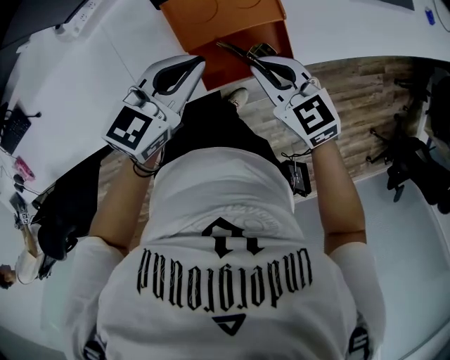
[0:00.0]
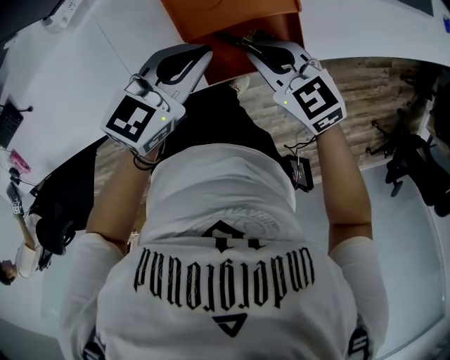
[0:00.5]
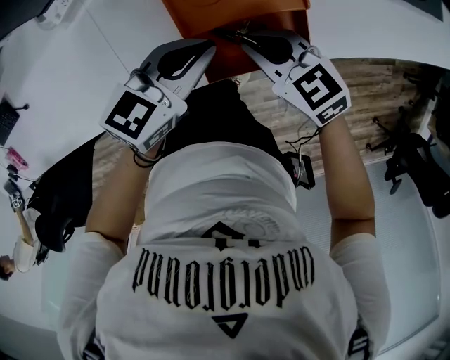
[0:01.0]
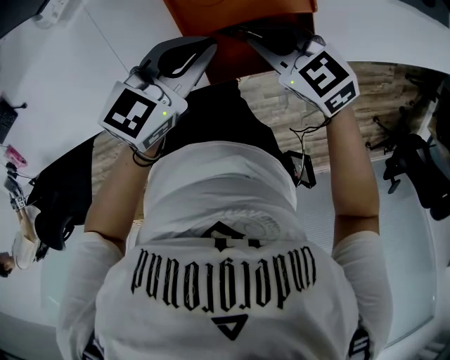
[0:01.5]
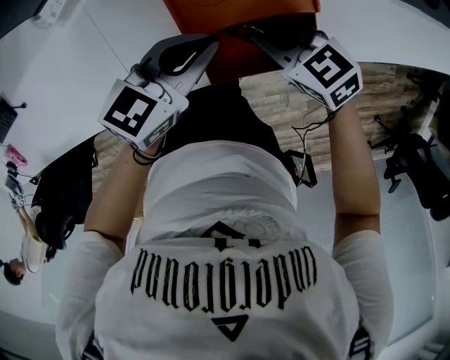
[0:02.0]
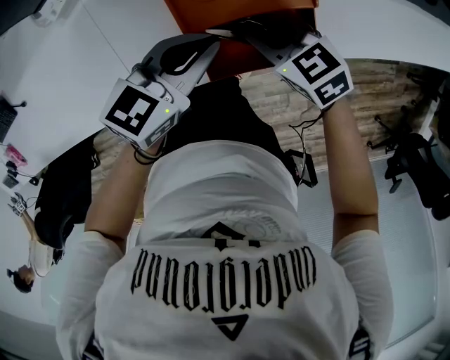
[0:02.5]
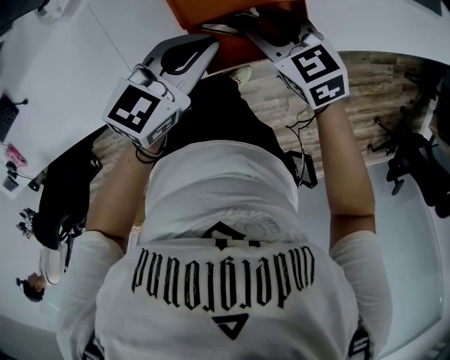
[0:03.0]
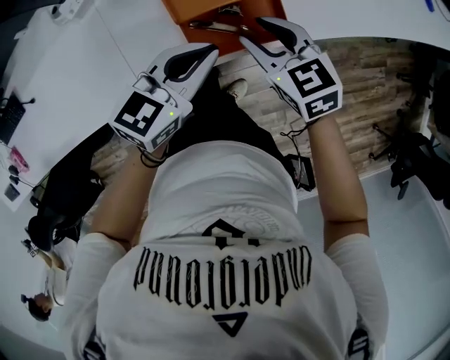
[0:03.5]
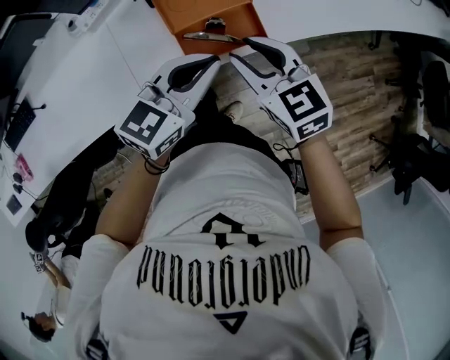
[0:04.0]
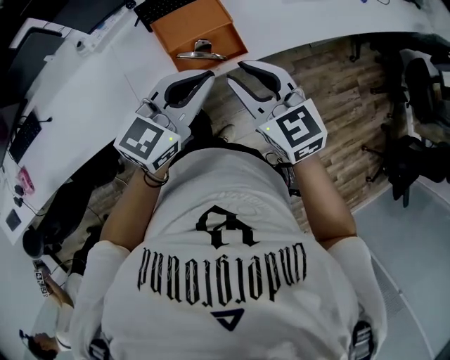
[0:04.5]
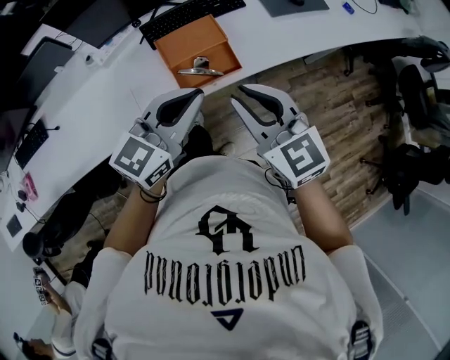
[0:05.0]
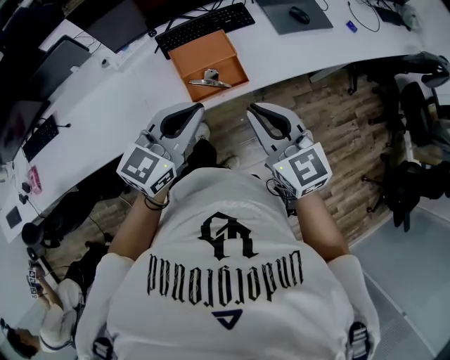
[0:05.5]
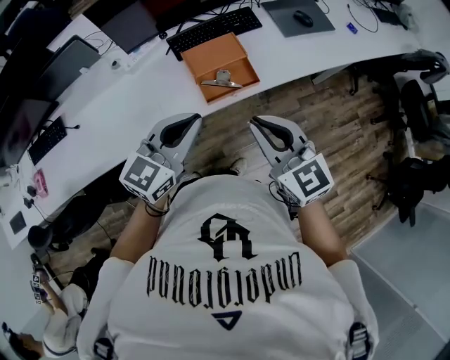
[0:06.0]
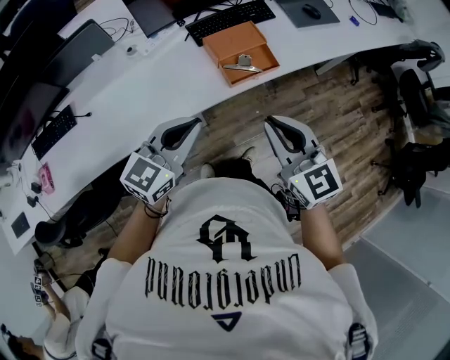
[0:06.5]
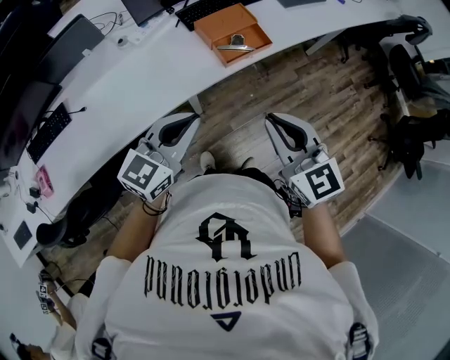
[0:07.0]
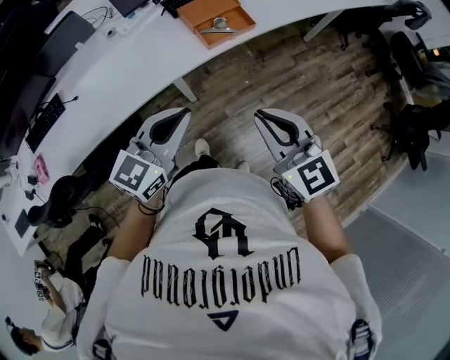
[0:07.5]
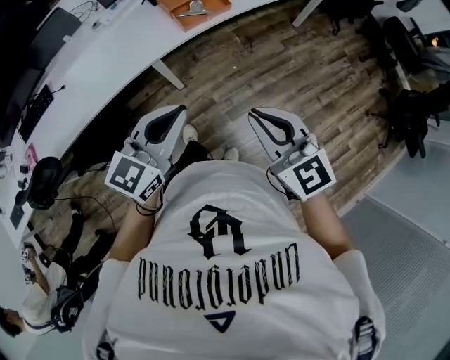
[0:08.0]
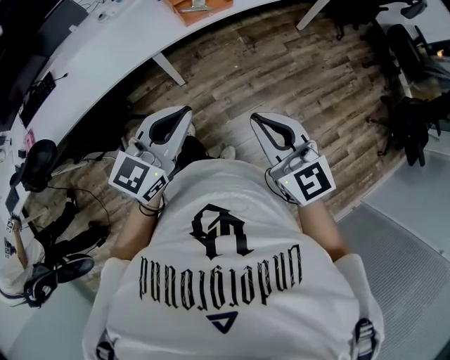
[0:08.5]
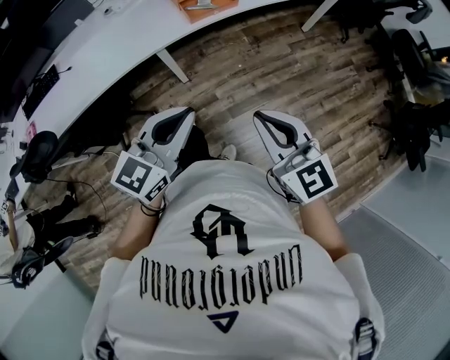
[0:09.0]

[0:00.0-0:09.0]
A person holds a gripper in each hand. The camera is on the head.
0:00.0 to 0:02.0: Both grippers move downward, approximately 10 cm.
0:02.0 to 0:04.5: Both grippers travel together upward, roughly 25 cm. The right gripper rotates about 40 degrees, and opens, while the left gripper rotates about 30 degrees.
0:04.5 to 0:07.0: The two grippers go roughly 30 cm backward and to the left. The right gripper closes up.
0:07.0 to 0:09.0: The two grippers go roughly 25 cm backward and to the right.

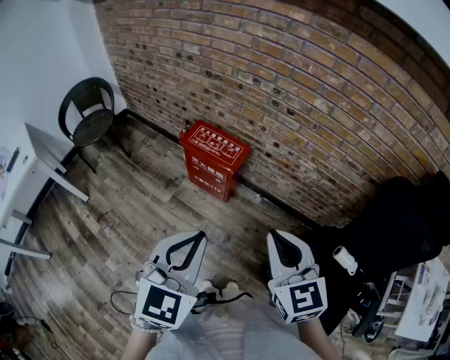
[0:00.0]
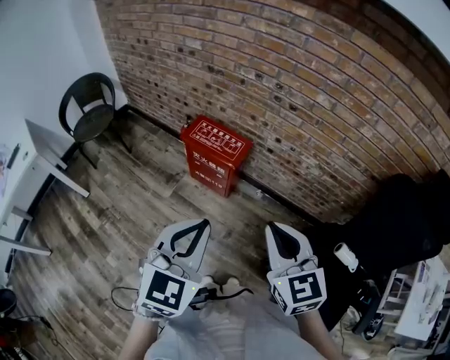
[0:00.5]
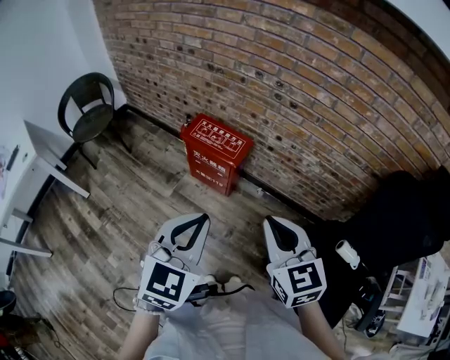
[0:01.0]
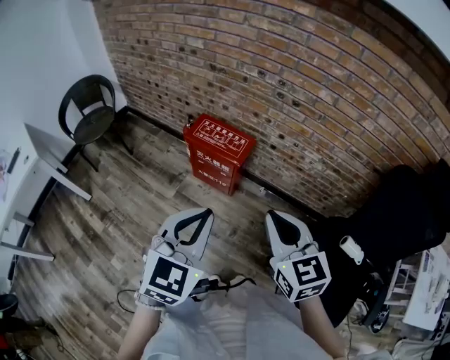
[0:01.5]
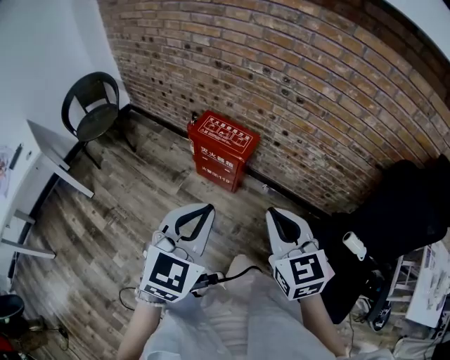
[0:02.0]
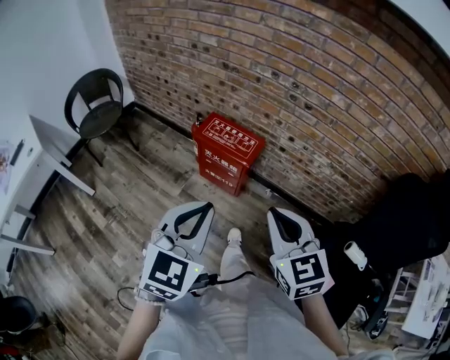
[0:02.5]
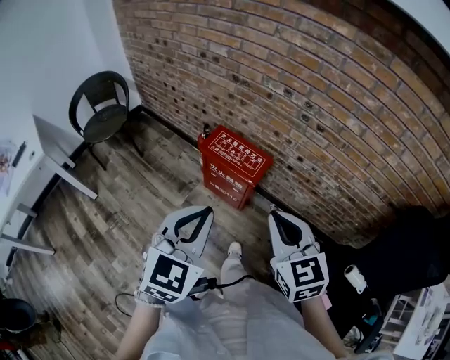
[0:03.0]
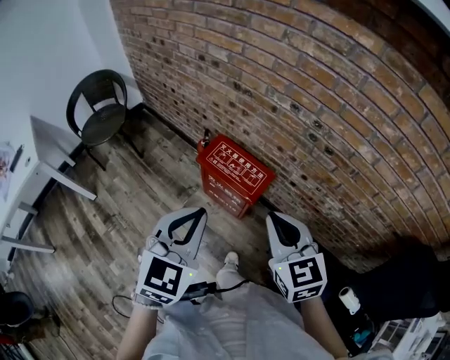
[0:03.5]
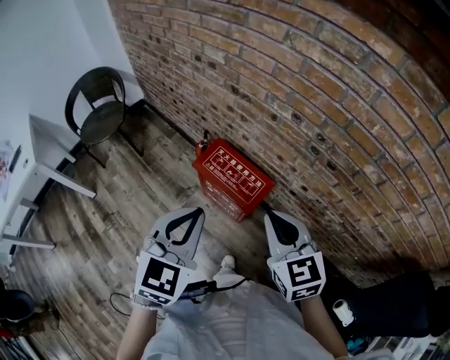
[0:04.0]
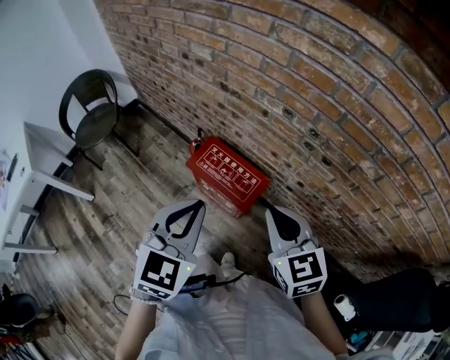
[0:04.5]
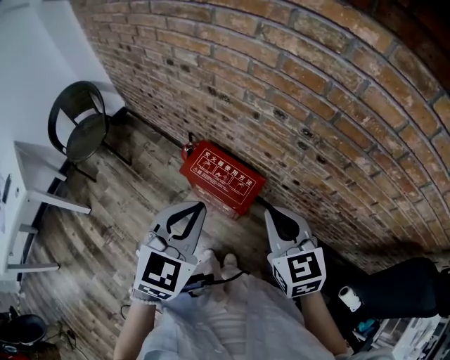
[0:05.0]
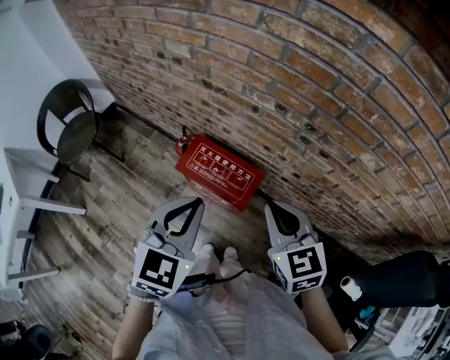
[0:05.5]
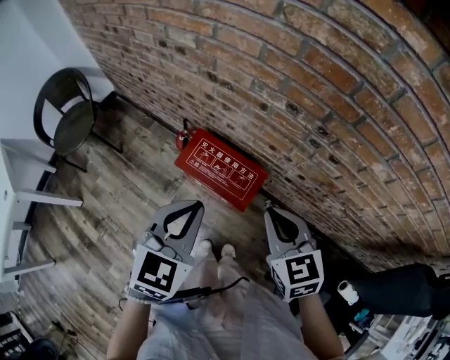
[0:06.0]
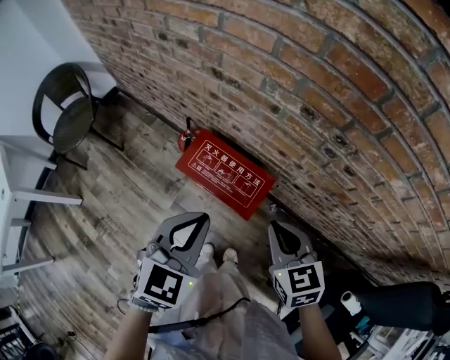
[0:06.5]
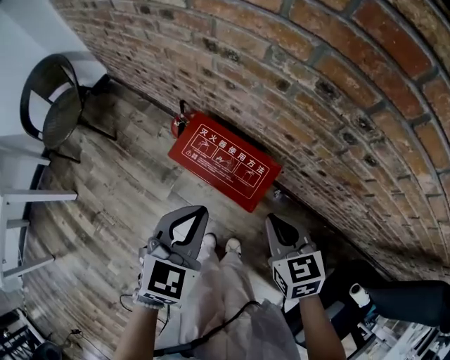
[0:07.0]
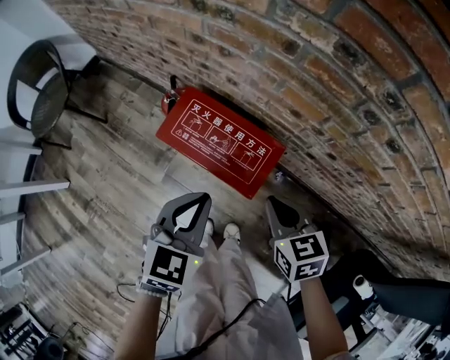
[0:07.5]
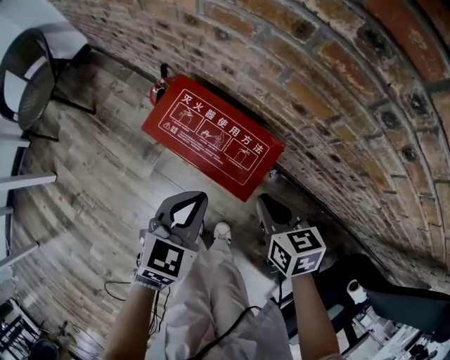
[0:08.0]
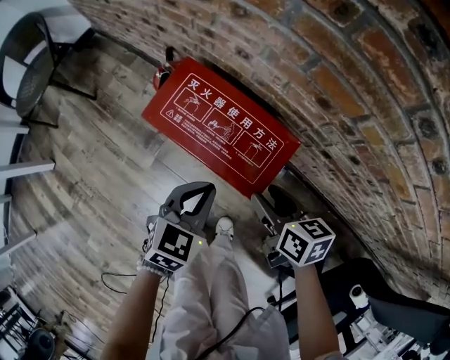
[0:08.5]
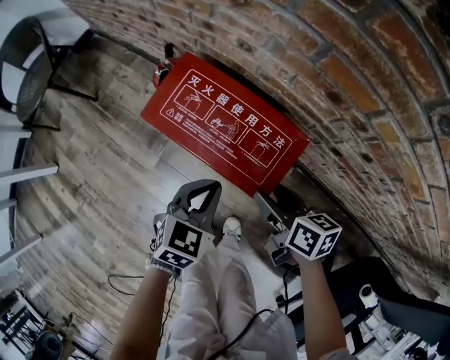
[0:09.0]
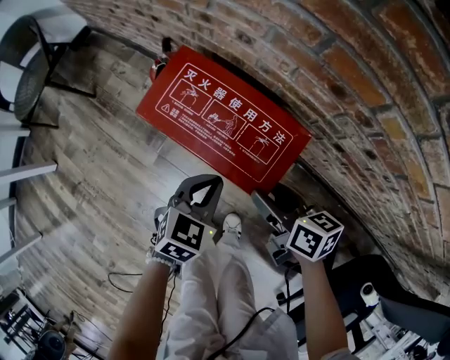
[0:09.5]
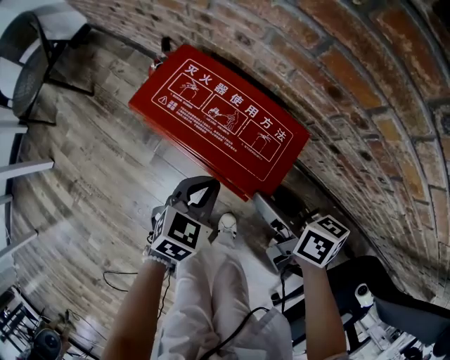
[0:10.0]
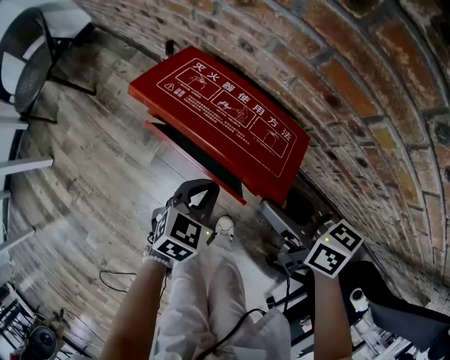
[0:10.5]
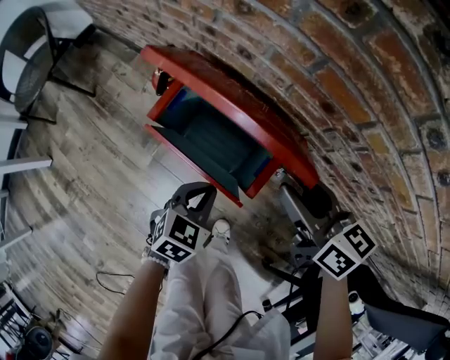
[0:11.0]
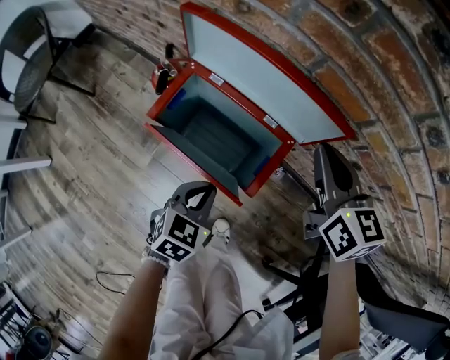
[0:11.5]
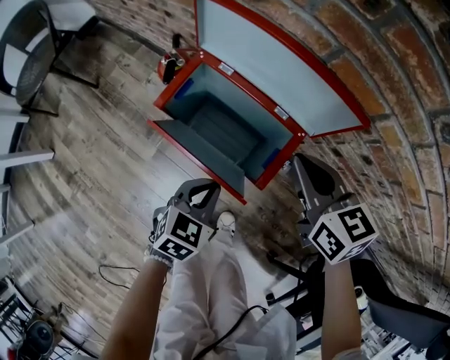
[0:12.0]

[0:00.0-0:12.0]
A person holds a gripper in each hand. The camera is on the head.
0:00.0 to 0:02.0: The left gripper changes place by approximately 5 cm; the right gripper goes about 5 cm to the left.
0:02.0 to 0:04.0: The grippers both shift forward by some 30 cm.
0:04.0 to 0:06.0: The two grippers go about 10 cm forward and downward.
0:06.0 to 0:08.0: Both grippers move downward, approximately 30 cm. The right gripper swivels some 30 degrees.
0:08.0 to 0:10.0: The left gripper shifts roughly 15 cm downward; the right gripper changes its angle by some 30 degrees, and opens.
0:10.0 to 0:12.0: The right gripper heads forward and upward, covering roughly 10 cm, turns by roughly 40 degrees, and closes.

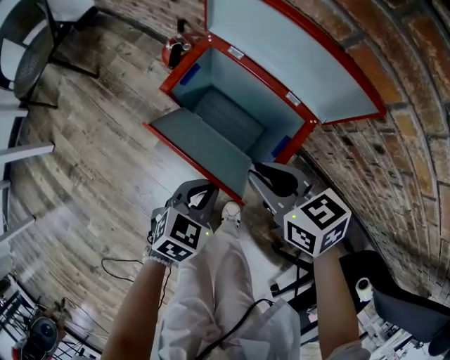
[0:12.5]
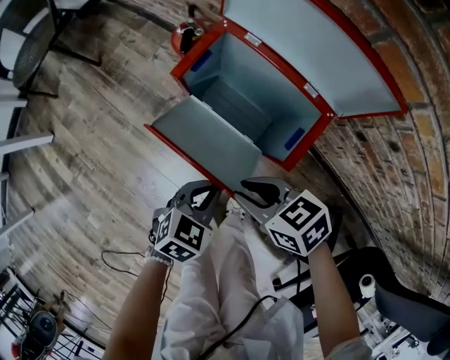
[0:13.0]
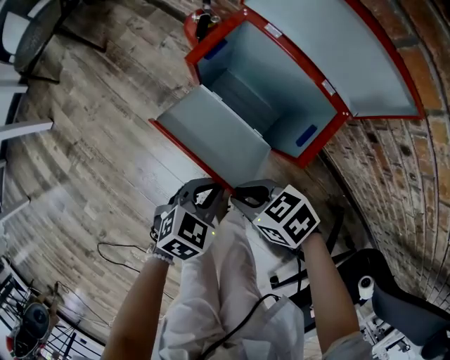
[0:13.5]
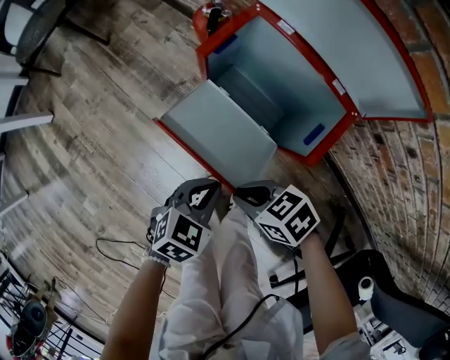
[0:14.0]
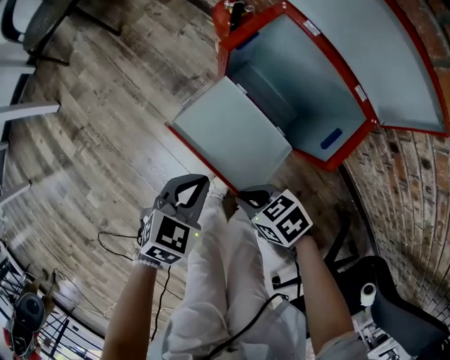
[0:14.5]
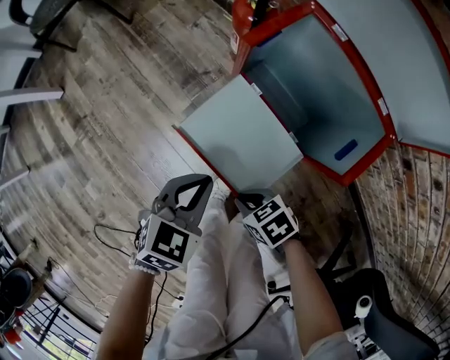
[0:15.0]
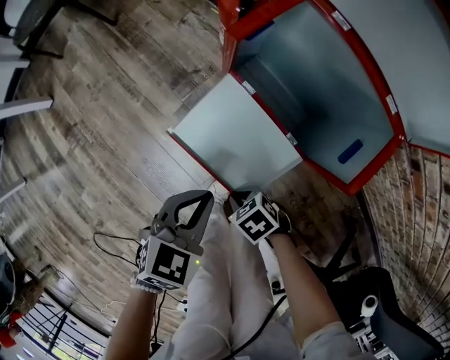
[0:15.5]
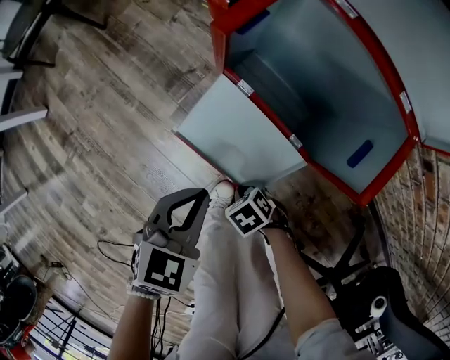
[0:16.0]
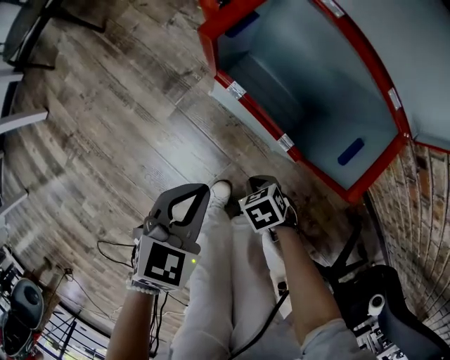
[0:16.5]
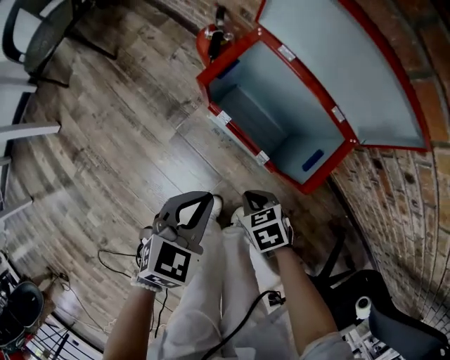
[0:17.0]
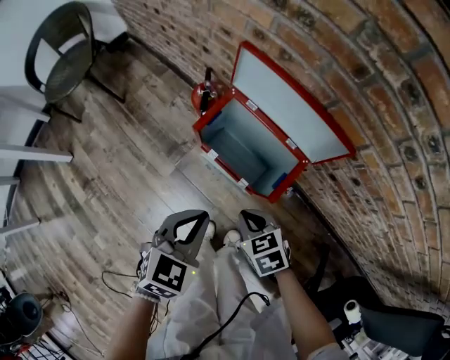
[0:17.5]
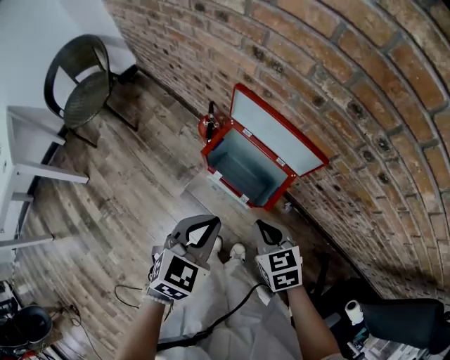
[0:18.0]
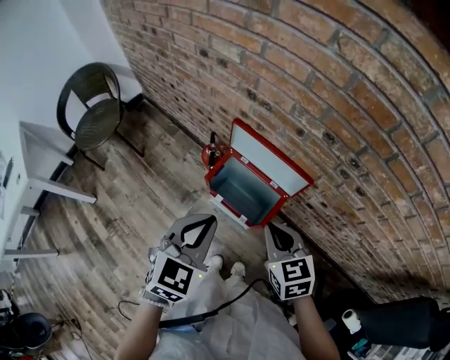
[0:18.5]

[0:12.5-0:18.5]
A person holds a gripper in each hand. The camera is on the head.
0:12.5 to 0:14.5: The left gripper shifts by roughly 15 cm. Meanwhile the right gripper moves roughly 25 cm, and rotates about 40 degrees.
0:14.5 to 0:16.5: The right gripper heads downward, covering roughly 15 cm, and changes its angle by approximately 30 degrees.
0:16.5 to 0:18.5: Both grippers move upward, roughly 60 cm. The left gripper turns by roughly 20 degrees. Meanwhile the right gripper tips its fingers upward by about 40 degrees.
